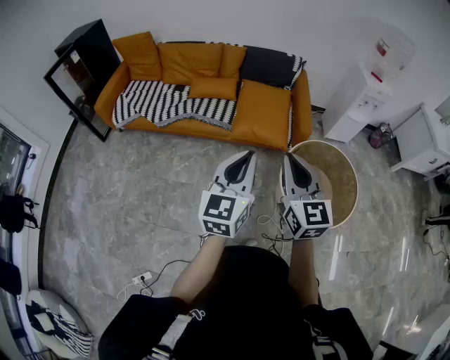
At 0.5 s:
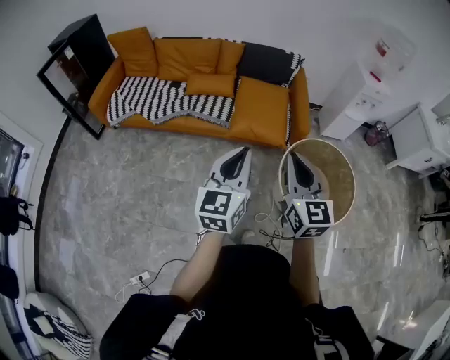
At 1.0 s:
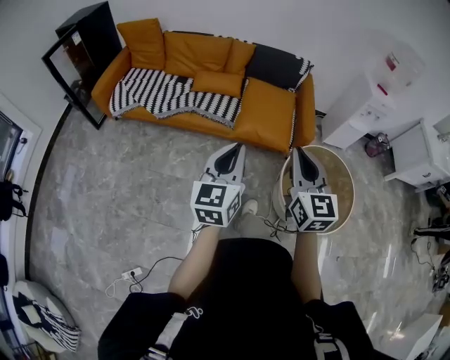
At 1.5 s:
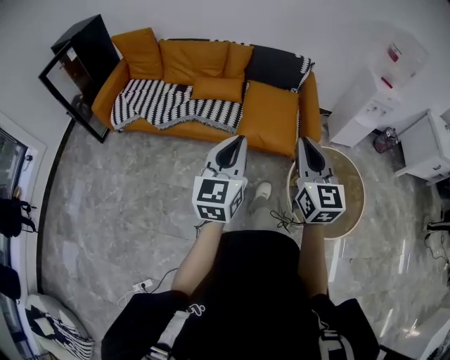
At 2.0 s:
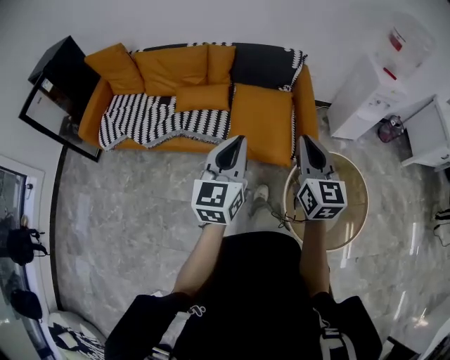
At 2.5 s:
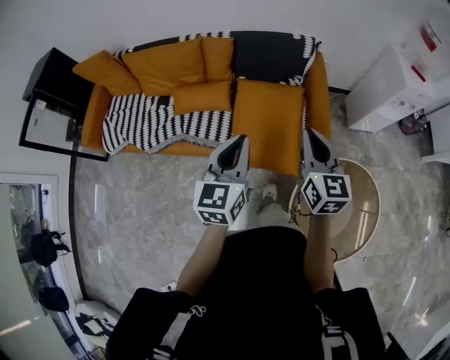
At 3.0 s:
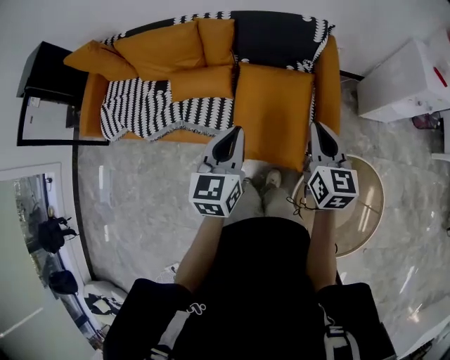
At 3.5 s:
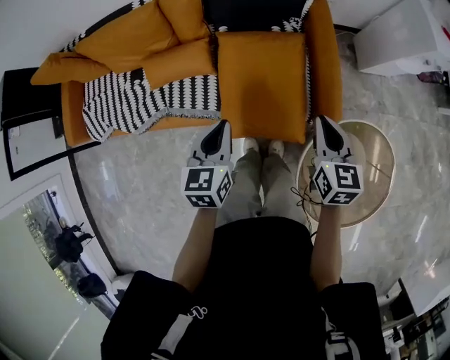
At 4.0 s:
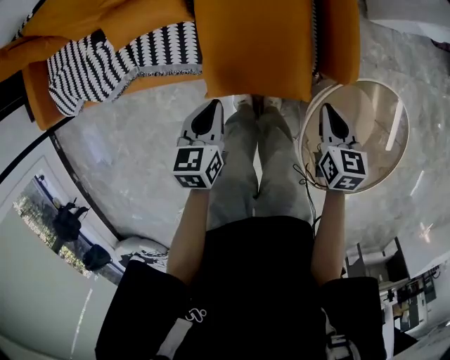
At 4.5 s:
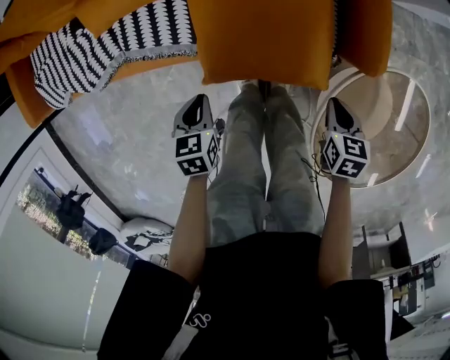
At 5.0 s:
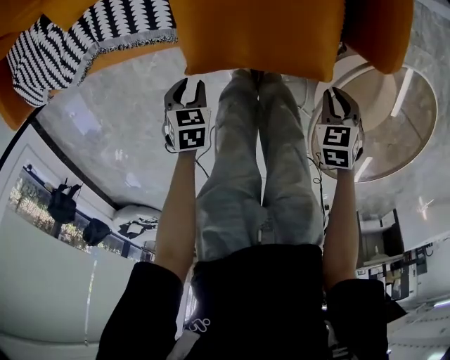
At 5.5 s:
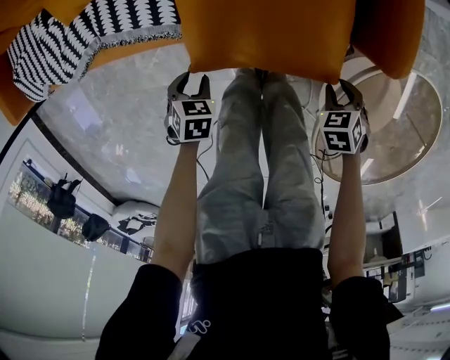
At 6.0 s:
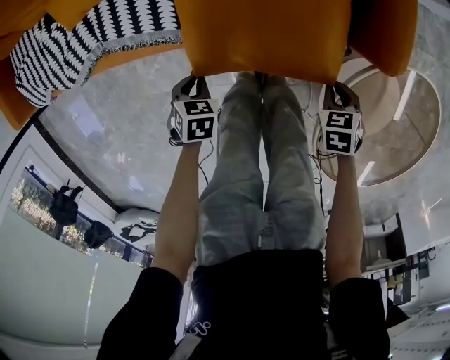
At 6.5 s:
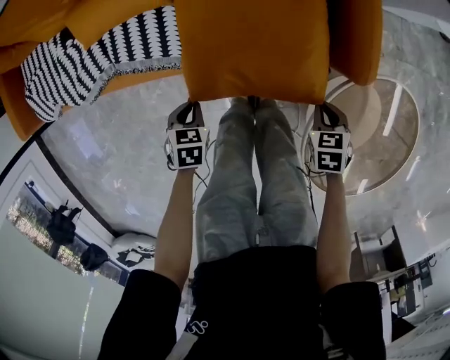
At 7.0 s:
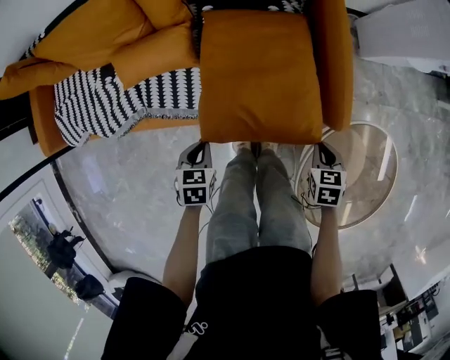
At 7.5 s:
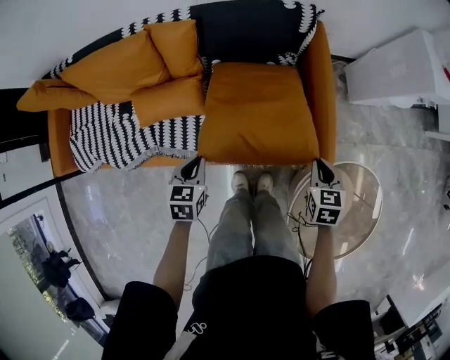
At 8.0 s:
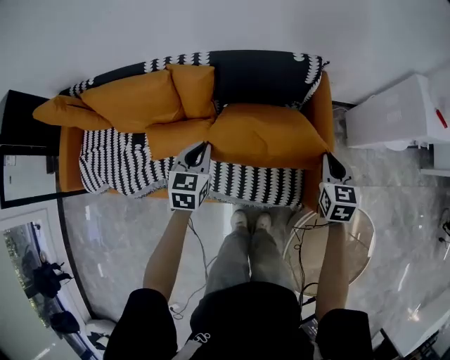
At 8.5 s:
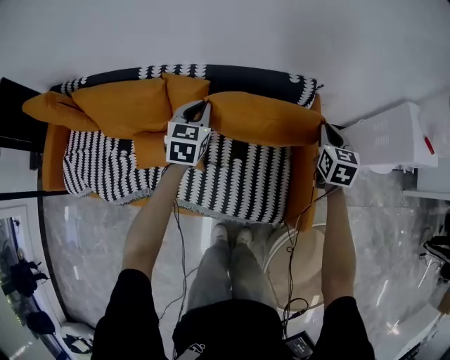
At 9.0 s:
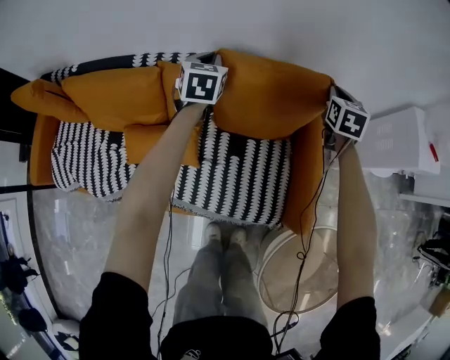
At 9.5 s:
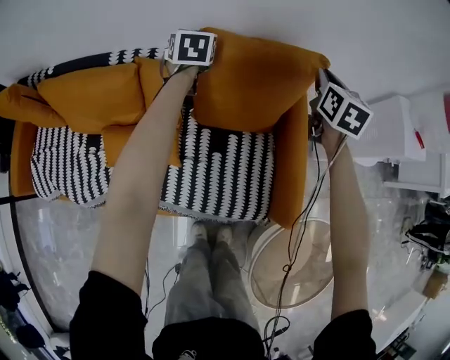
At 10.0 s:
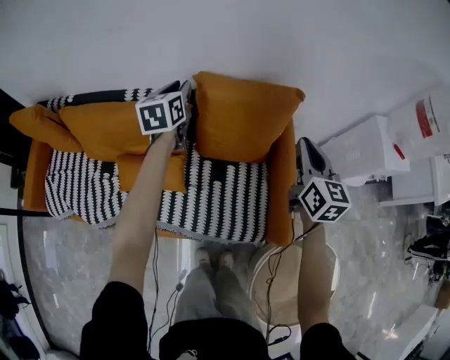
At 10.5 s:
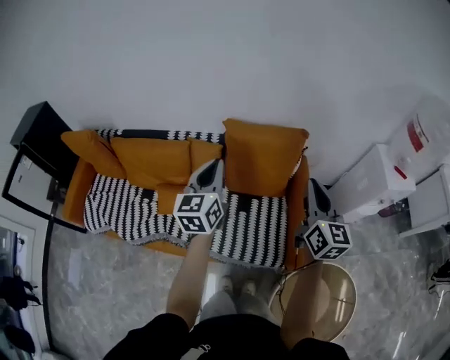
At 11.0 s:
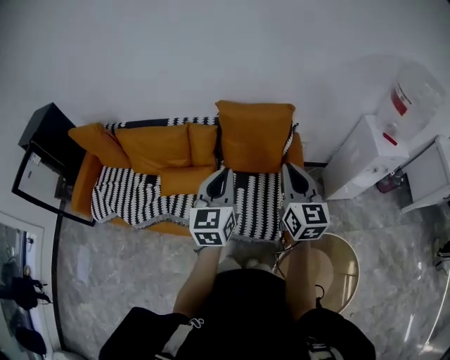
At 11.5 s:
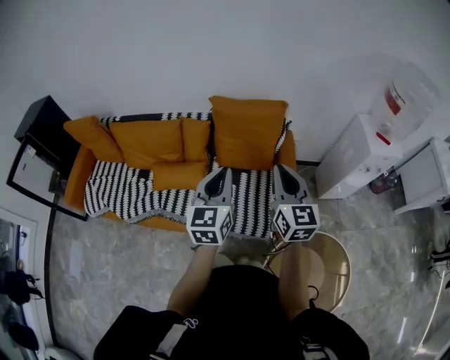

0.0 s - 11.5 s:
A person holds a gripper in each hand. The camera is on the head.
0.0 s - 2.0 s: Both grippers move forward, about 30 cm.
2.0 s - 4.0 s: Both grippers travel together downward and forward, roughly 40 cm. The left gripper points its fingers approximately 40 degrees further downward. The right gripper tilts its fingers some 40 degrees downward.
4.0 s - 6.0 s: The grippers both shift downward by some 25 cm. The right gripper rotates some 40 degrees. The left gripper angles its fingers downward, by roughly 30 degrees, and opens, then closes once more.
6.0 s - 7.5 s: The two grippers go roughly 30 cm upward. The right gripper changes its angle by about 30 degrees; the left gripper changes its angle by about 30 degrees.
7.5 s - 9.5 s: The two grippers travel together, forward, about 50 cm. The right gripper turns by roughly 30 degrees.
9.5 s - 11.5 s: The pair of grippers is taken backward, some 50 cm. The grippers both shift upward by some 25 cm. The right gripper swivels approximately 30 degrees; the left gripper changes its angle by roughly 30 degrees, and opens, then closes once more.

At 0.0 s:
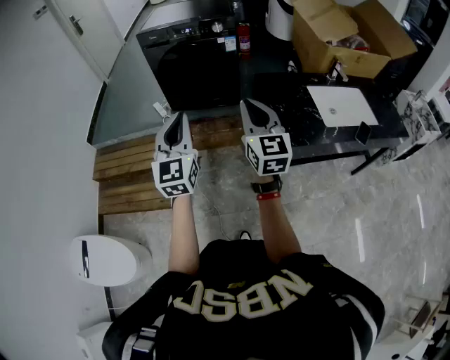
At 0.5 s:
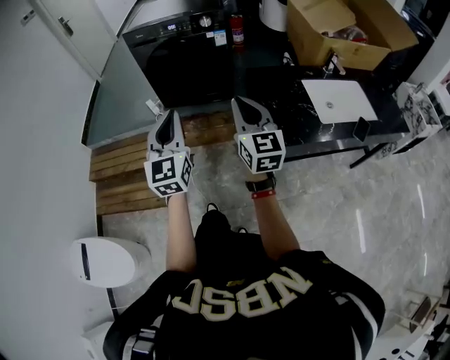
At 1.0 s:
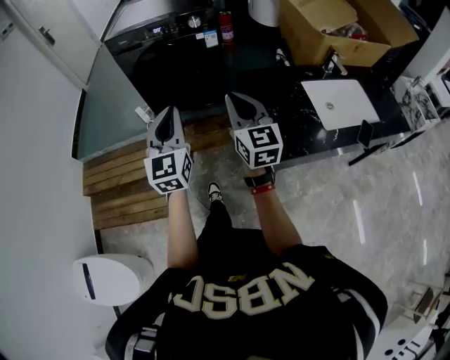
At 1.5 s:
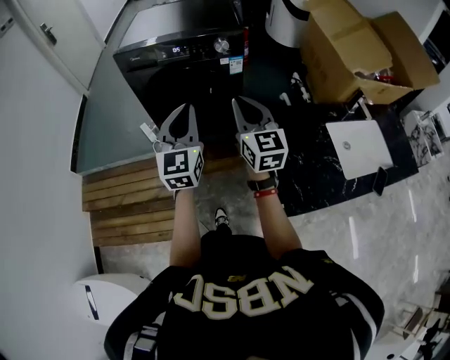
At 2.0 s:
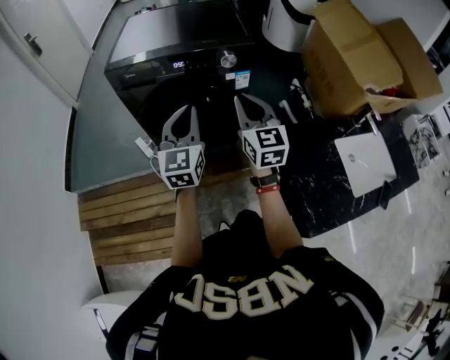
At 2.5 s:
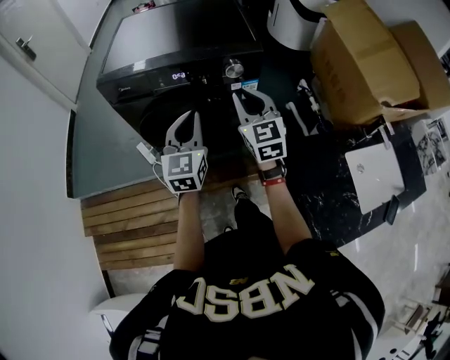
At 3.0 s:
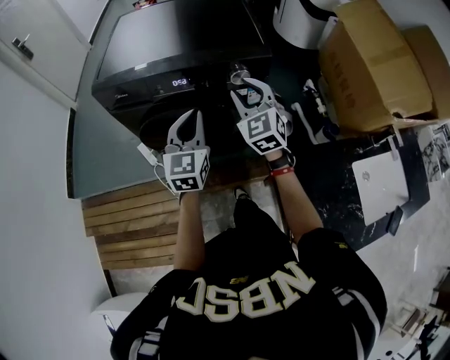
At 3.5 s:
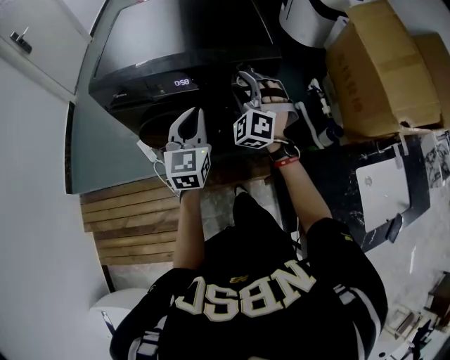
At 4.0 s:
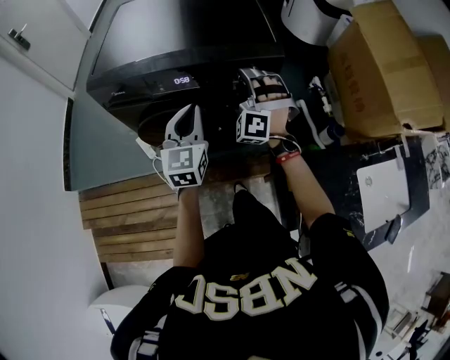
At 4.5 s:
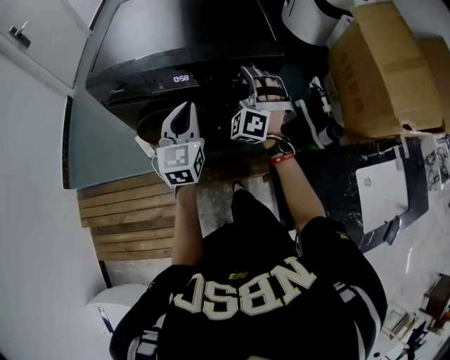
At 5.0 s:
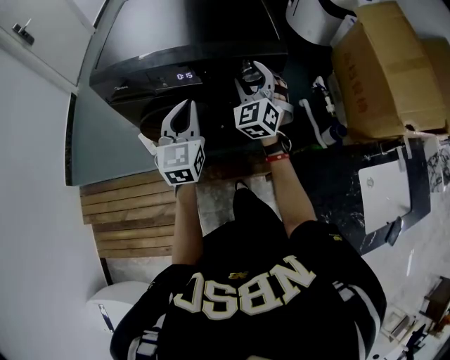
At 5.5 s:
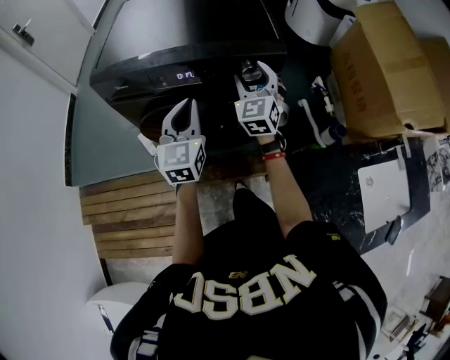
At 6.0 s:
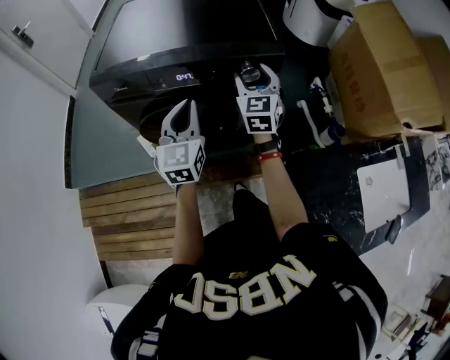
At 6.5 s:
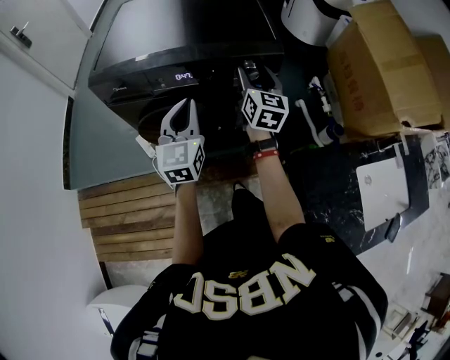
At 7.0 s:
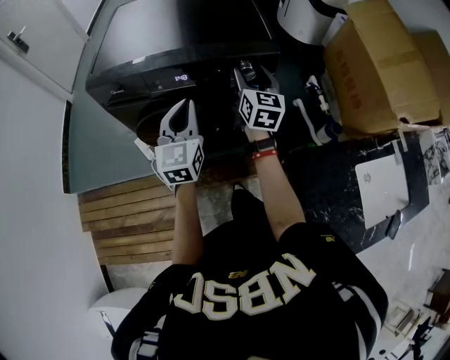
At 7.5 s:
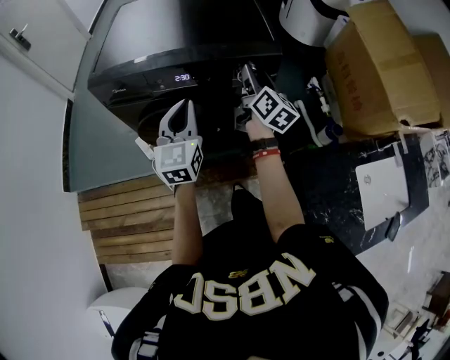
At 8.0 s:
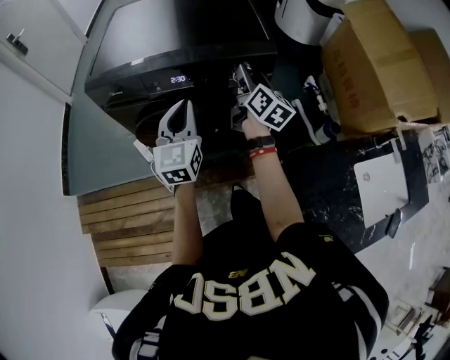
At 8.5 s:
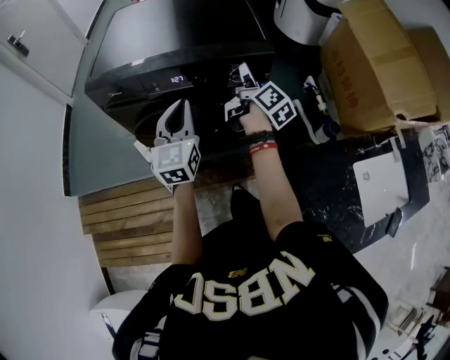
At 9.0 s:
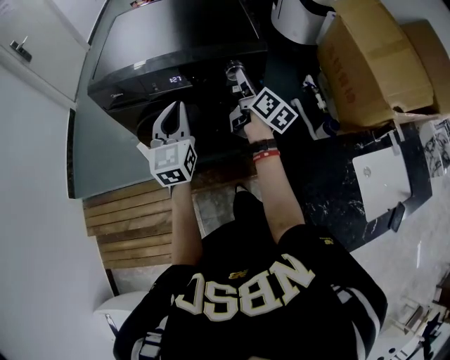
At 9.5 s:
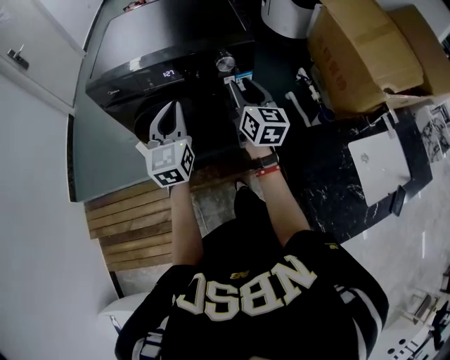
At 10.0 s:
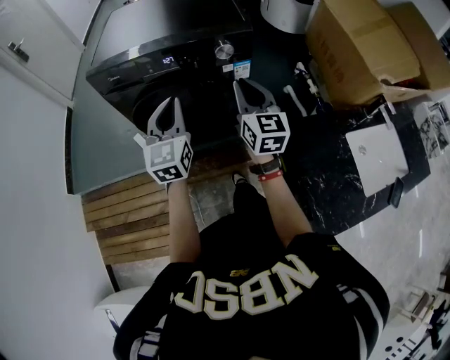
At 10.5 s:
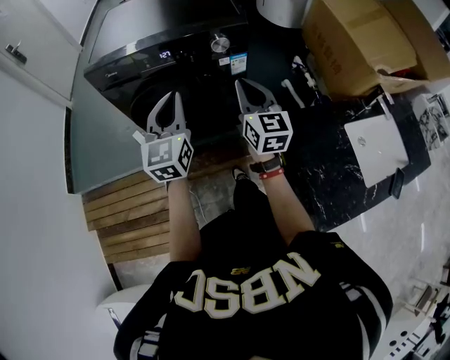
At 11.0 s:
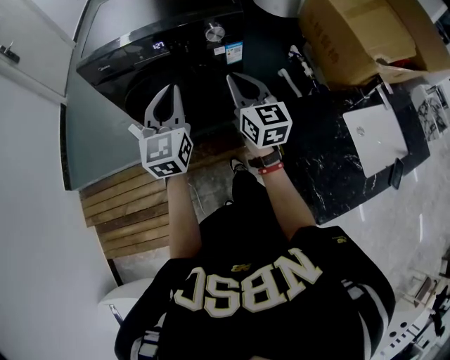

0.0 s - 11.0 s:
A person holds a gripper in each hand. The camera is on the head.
0.0 s - 2.0 s: The two grippers travel together, forward, roughly 50 cm.
2.0 s - 3.5 s: The left gripper is displaced forward and downward by approximately 20 cm; the right gripper moves forward, roughly 25 cm, rolls counterclockwise, seen from behind, by some 60 degrees, and opens its fingers.
3.5 s - 5.5 s: The right gripper rolls clockwise, seen from behind, by about 40 degrees.
5.5 s - 7.5 s: The right gripper rotates around the line of its fingers by roughly 70 degrees, clockwise from behind.
9.0 s - 11.0 s: The right gripper heads backward, covering approximately 20 cm, rotates around the line of its fingers by approximately 40 degrees, counterclockwise from behind, and closes, while the left gripper is displaced backward by roughly 10 cm.

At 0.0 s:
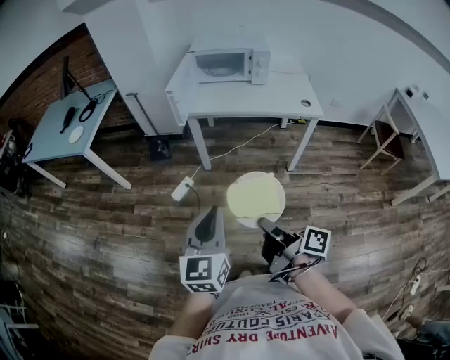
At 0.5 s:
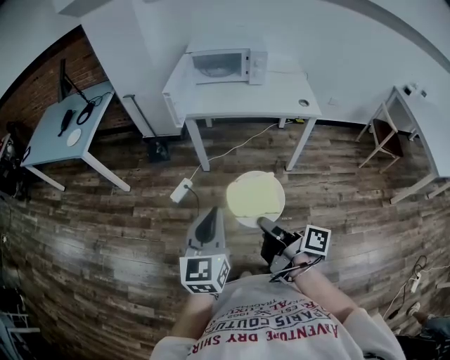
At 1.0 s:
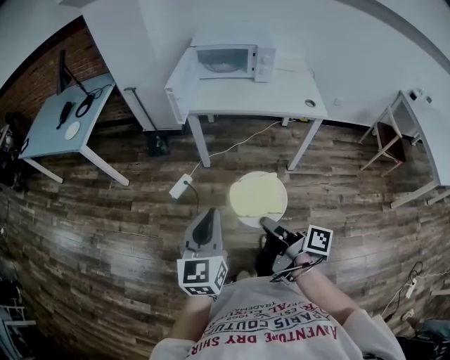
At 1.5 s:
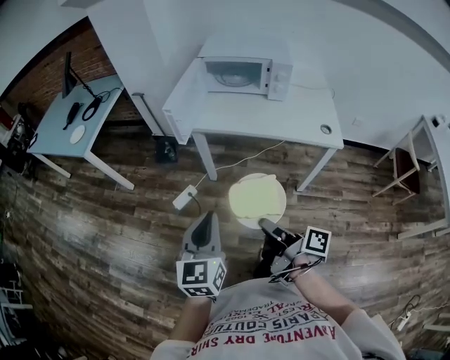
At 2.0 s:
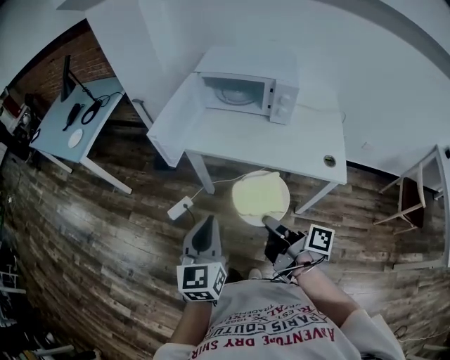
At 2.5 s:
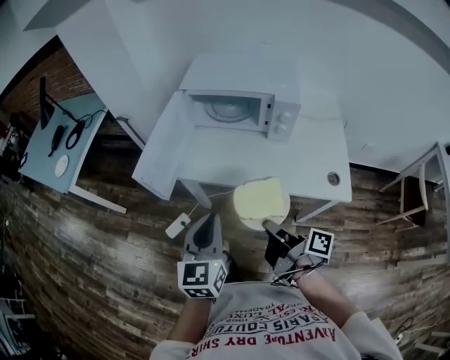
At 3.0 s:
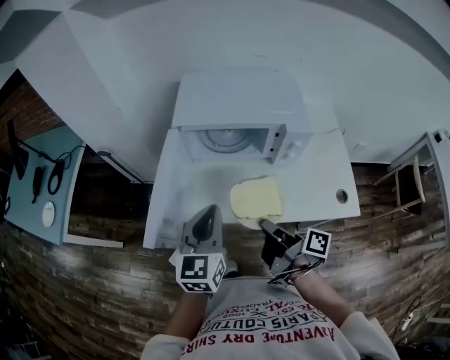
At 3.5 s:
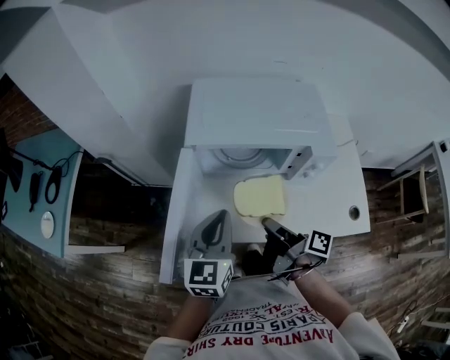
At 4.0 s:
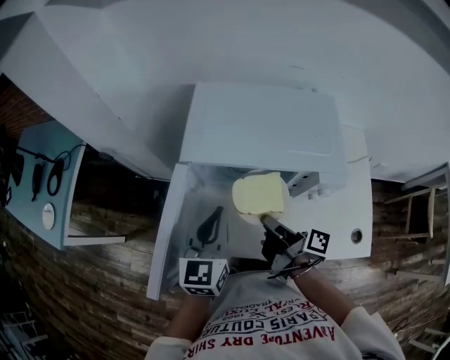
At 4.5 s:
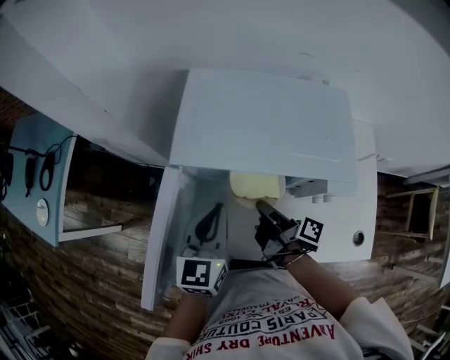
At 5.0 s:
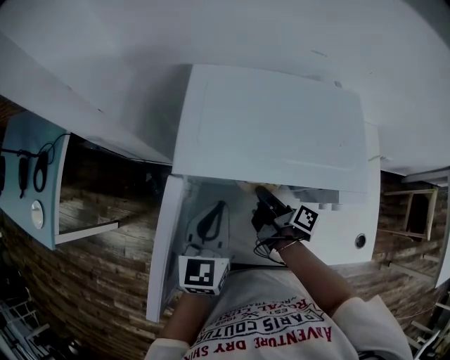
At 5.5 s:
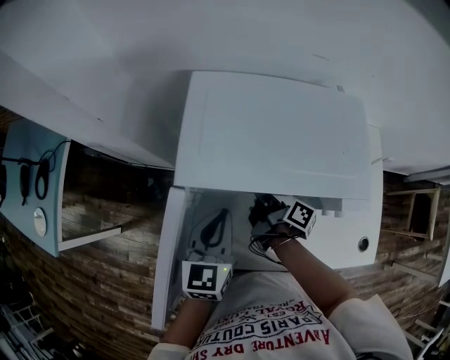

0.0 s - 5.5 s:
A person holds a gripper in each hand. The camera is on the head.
0.0 s - 2.0 s: The left gripper shifts by approximately 30 cm.
2.0 s - 3.5 s: The left gripper shifts by about 40 cm, and turns by roughly 20 degrees.
3.5 s - 5.5 s: The left gripper changes place by roughly 15 cm.
